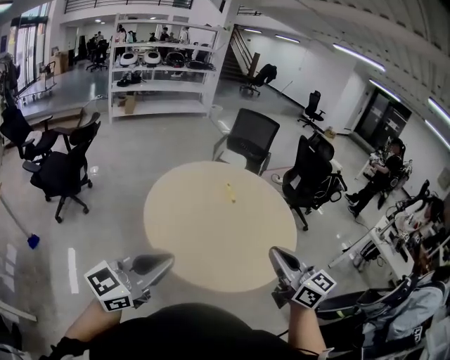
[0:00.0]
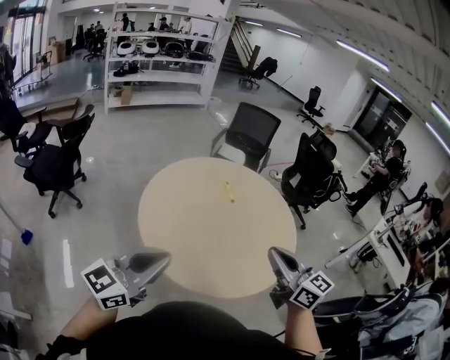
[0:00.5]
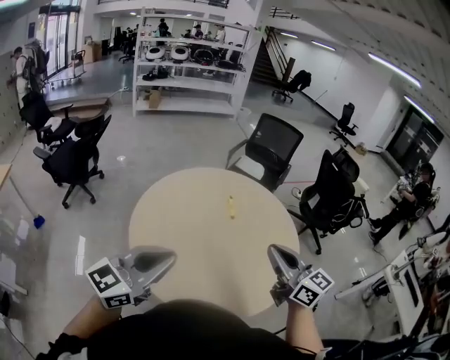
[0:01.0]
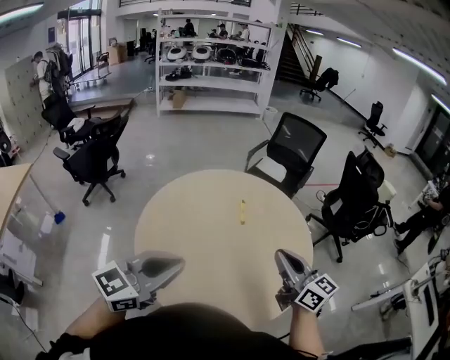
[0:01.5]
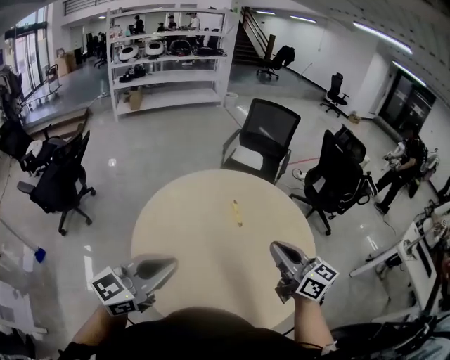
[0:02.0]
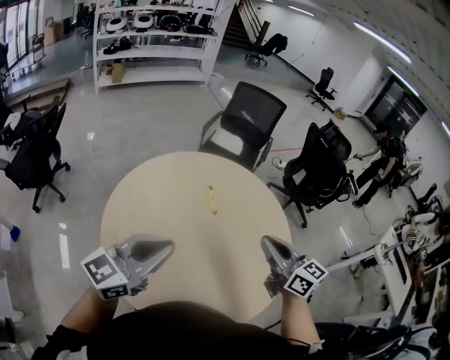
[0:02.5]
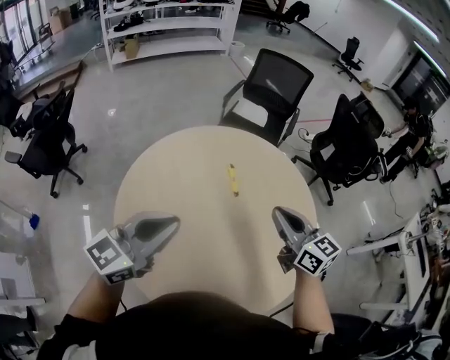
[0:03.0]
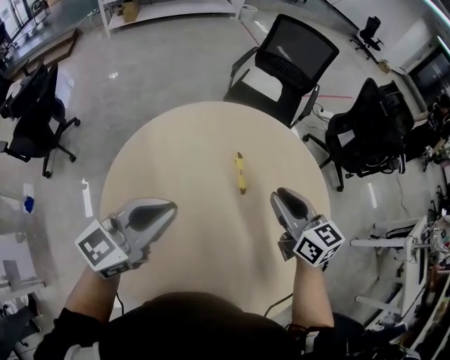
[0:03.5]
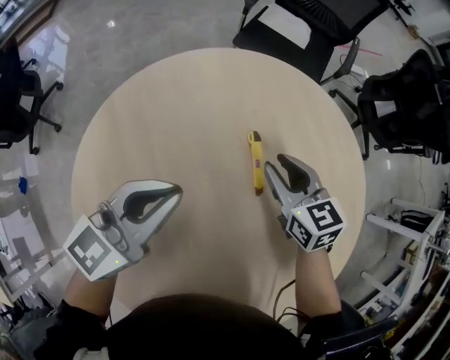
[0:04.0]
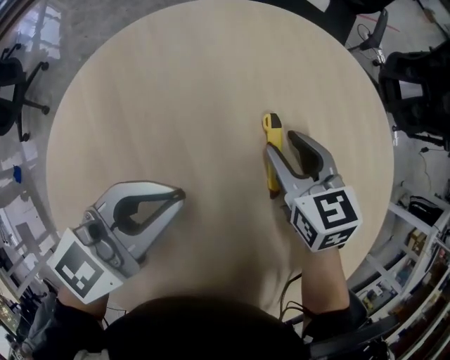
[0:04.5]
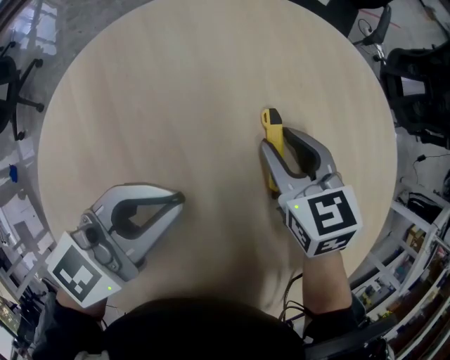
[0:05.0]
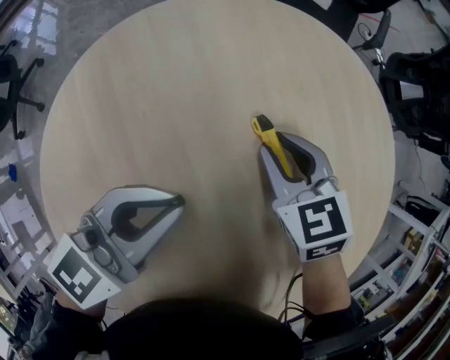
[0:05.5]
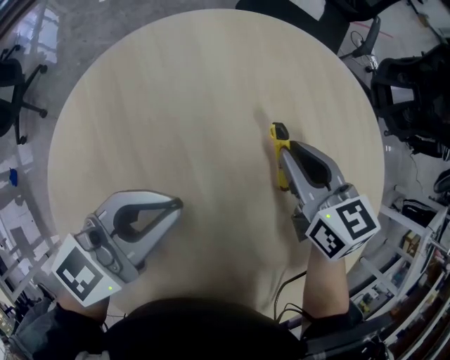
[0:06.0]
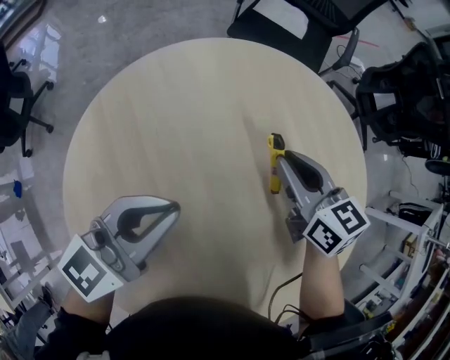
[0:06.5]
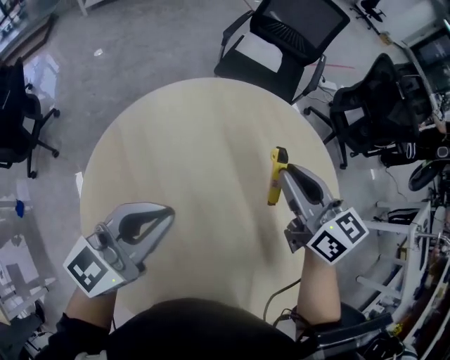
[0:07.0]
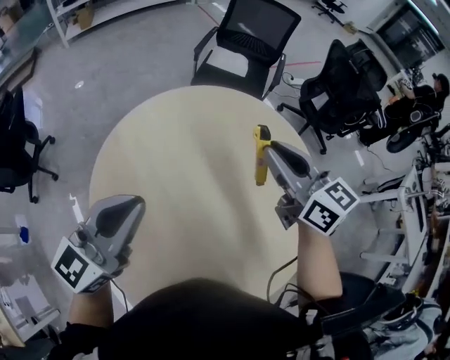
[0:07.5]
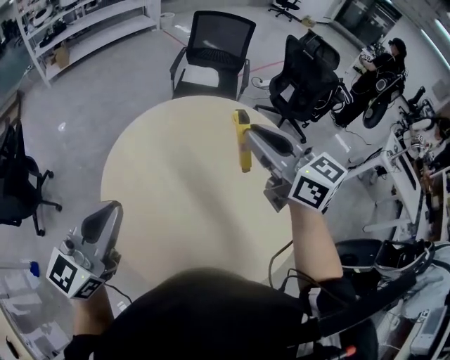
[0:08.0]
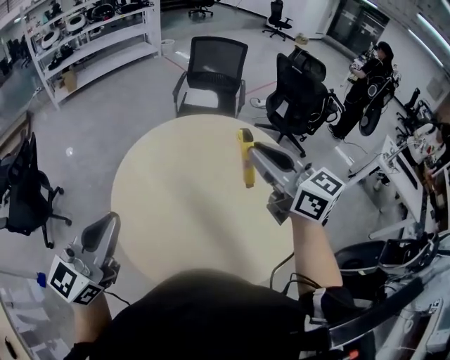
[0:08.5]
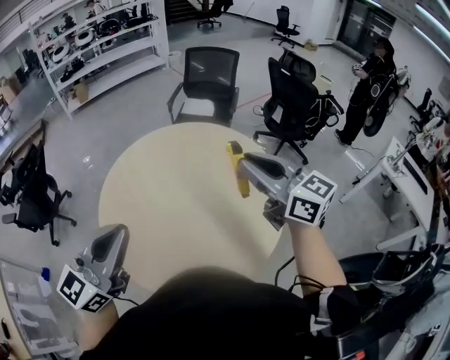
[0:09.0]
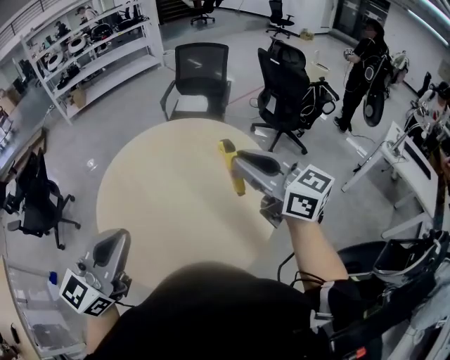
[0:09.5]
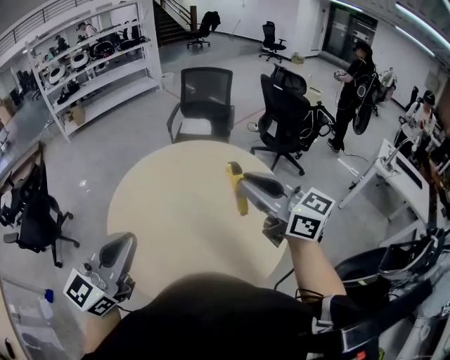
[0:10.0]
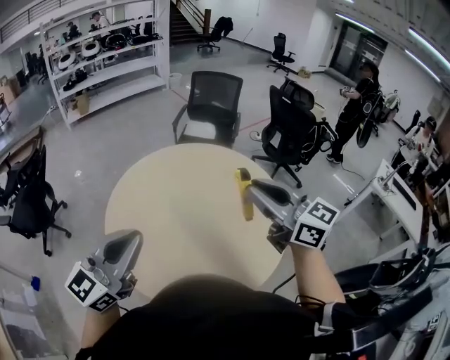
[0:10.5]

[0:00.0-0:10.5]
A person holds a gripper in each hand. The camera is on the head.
0:00.0 to 0:02.0: The grippers both shift forward by roughly 30 cm.
0:02.0 to 0:04.0: The two grippers go approximately 50 cm forward and downward. The right gripper tips its fingers downward by about 30 degrees, and opens its fingers.
0:04.0 to 0:06.5: The left gripper moves approximately 10 cm downward and comes back; the right gripper goes downward and returns, roughly 10 cm each way.
0:06.5 to 0:08.5: The two grippers go some 50 cm upward and backward. The right gripper changes its angle by about 30 degrees. The left gripper swivels about 20 degrees.
0:08.5 to 0:10.5: The left gripper is displaced to the right and backward by roughly 15 cm, while the right gripper goes some 15 cm backward and to the right.

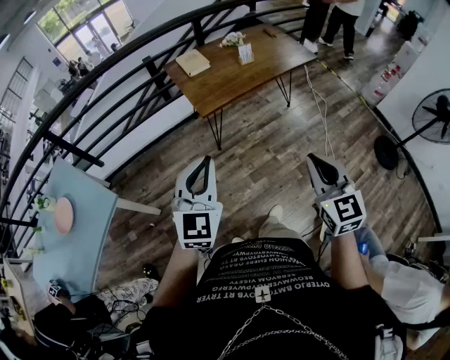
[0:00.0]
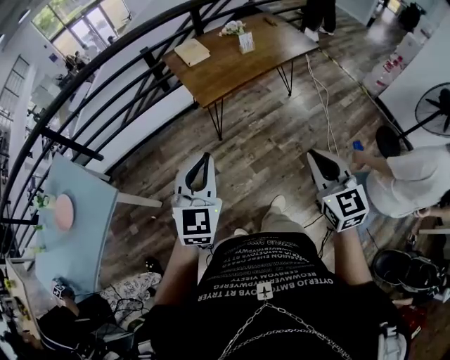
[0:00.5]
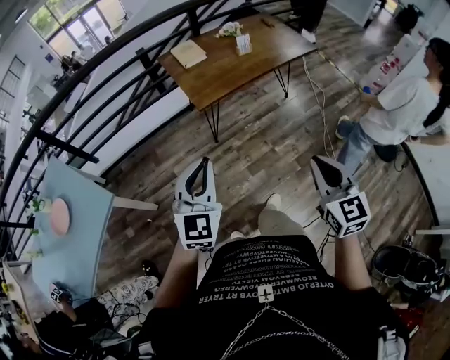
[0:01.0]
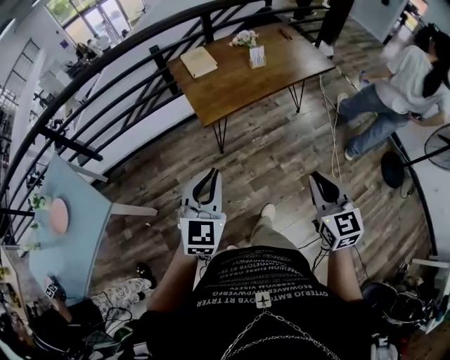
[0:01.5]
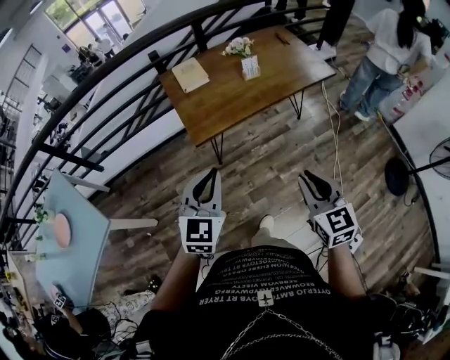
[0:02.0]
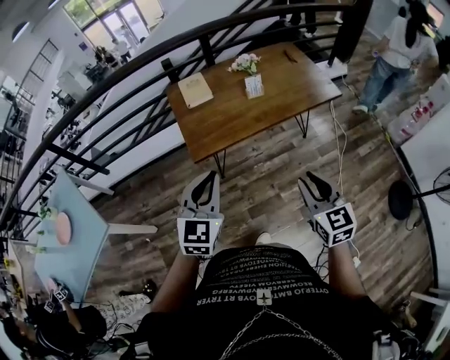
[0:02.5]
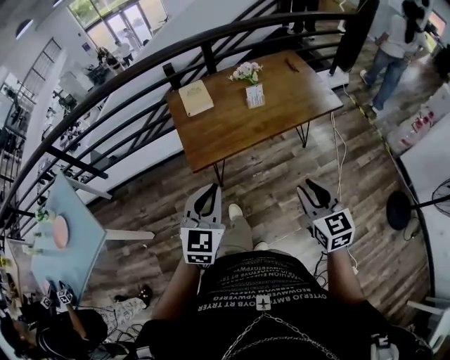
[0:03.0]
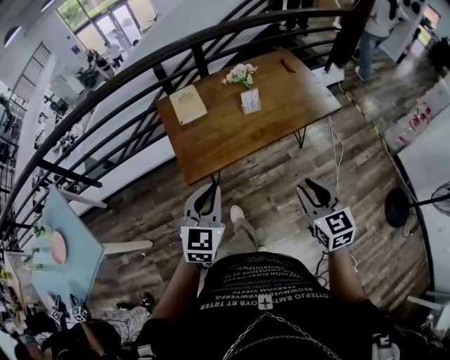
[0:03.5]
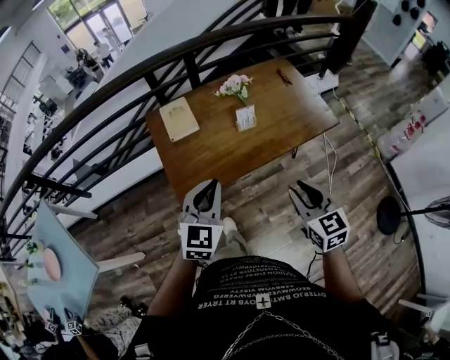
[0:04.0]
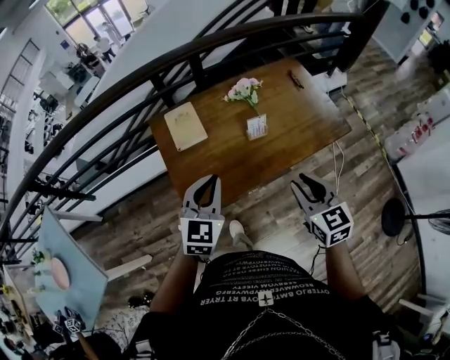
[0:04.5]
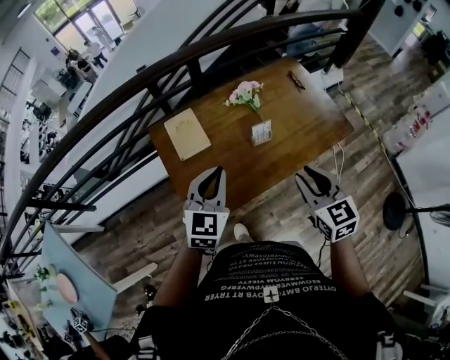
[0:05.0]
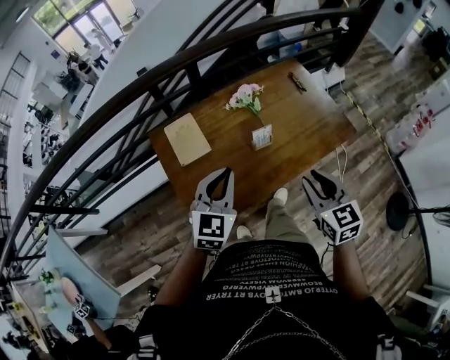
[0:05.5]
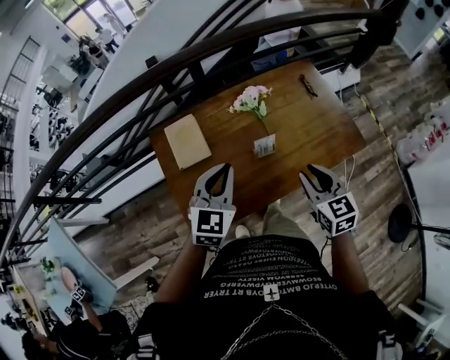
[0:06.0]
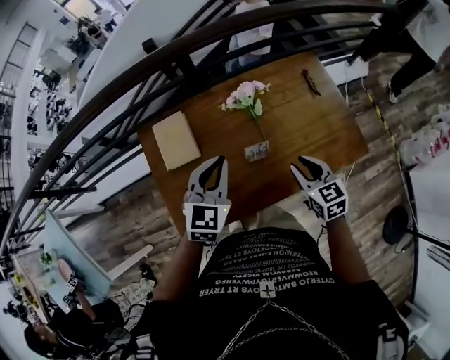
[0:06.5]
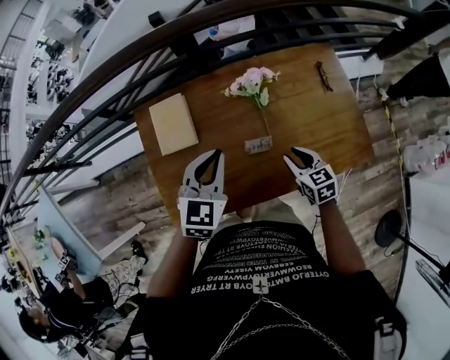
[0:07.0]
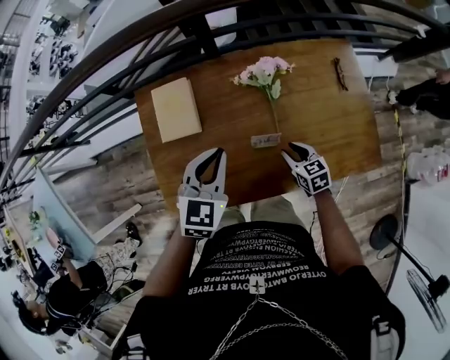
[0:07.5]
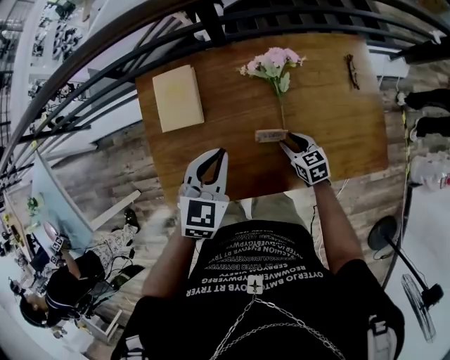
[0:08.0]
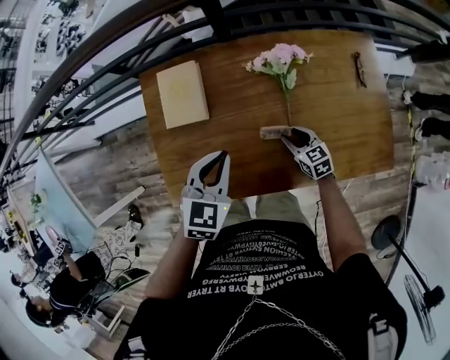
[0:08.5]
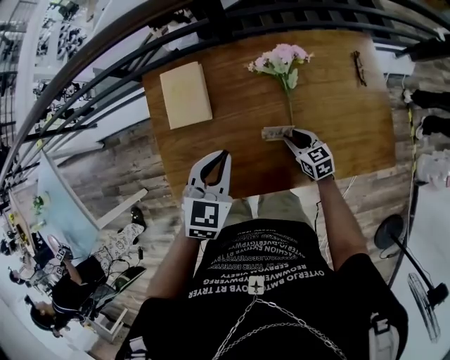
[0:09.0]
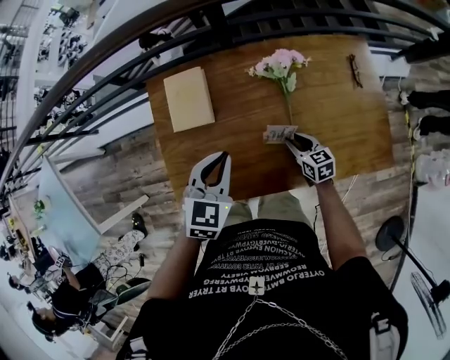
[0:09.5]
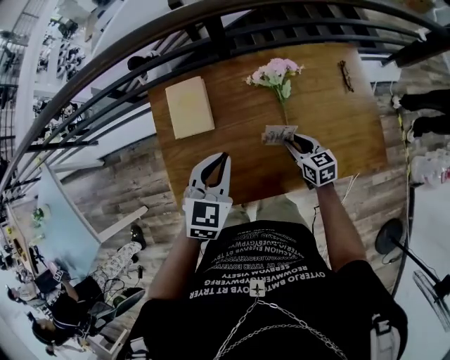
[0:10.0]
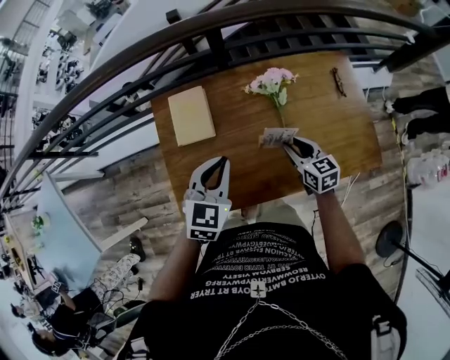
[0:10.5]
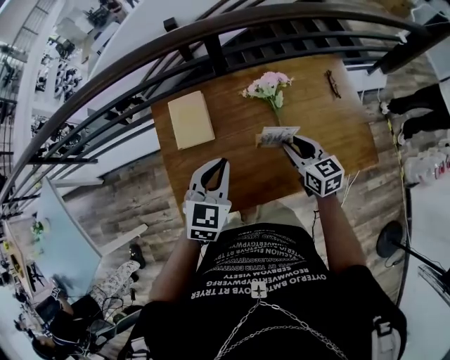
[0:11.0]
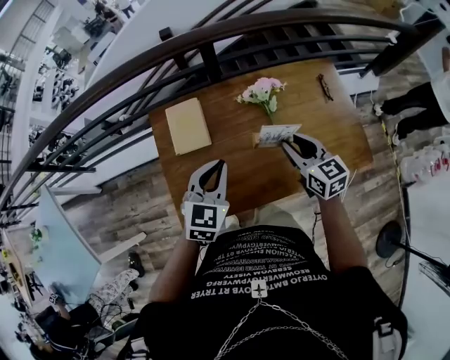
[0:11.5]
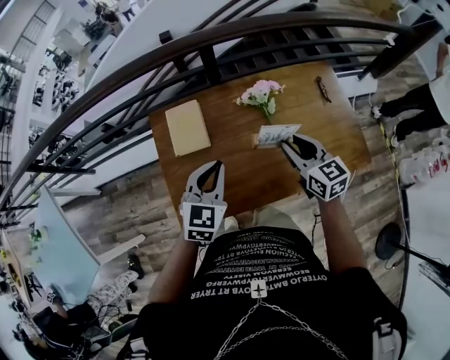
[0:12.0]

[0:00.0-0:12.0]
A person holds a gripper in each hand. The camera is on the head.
0:00.0 to 0:02.0: The right gripper moves forward, about 20 cm, while the left gripper heads forward and to the right, covering roughly 25 cm.
0:02.0 to 0:04.0: Both grippers move forward, some 25 cm.
0:04.0 to 0:06.0: The grippers both shift forward by approximately 25 cm.
0:06.0 to 0:08.0: The left gripper goes some 15 cm downward and forward, and turns by about 20 degrees, while the right gripper heads downward and forward, covering roughly 35 cm, and rotates some 30 degrees.
0:08.0 to 0:10.0: The right gripper travels upward by some 5 cm.
0:10.0 to 0:12.0: The right gripper travels upward by some 20 cm.

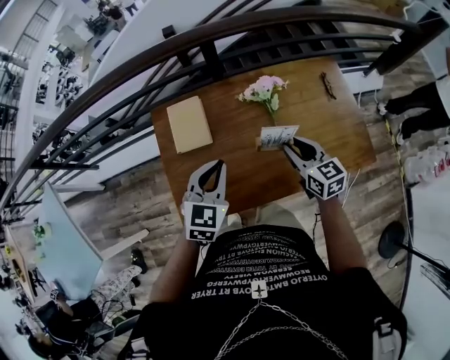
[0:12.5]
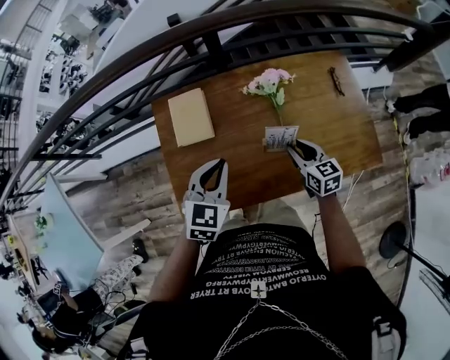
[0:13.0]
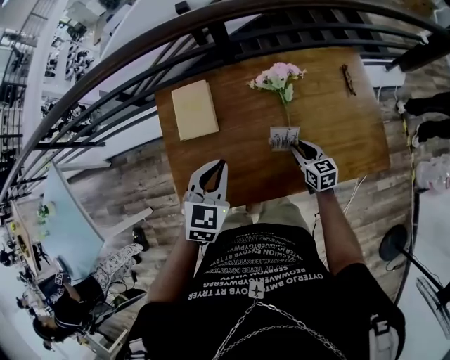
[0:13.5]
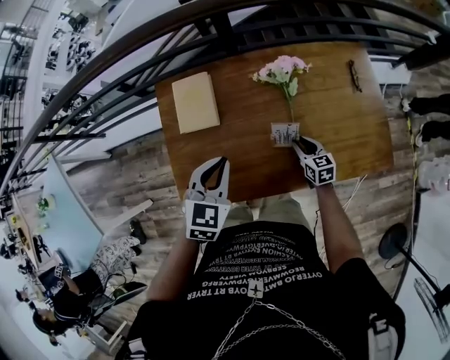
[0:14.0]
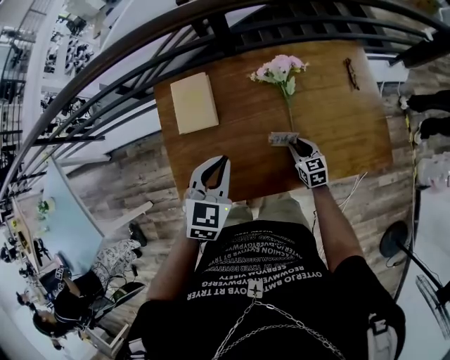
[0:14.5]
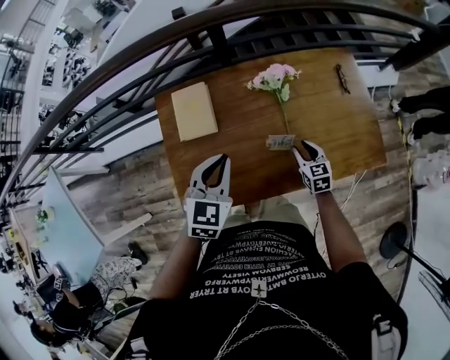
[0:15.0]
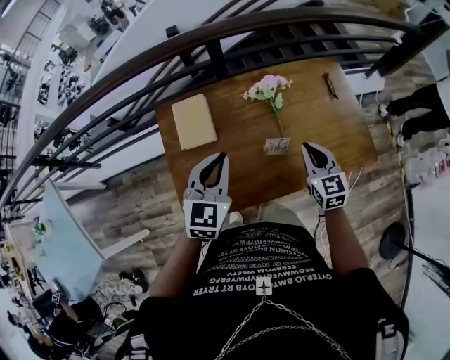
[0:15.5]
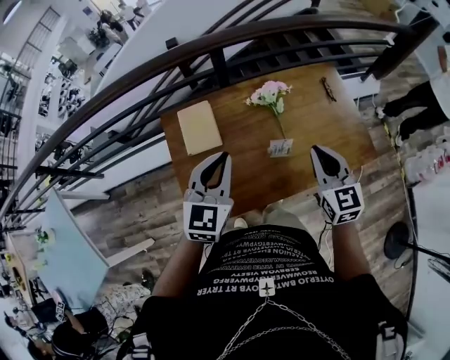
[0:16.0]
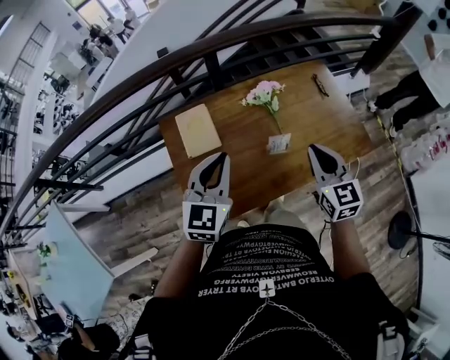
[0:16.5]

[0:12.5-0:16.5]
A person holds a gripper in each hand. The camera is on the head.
0:12.5 to 0:14.5: The right gripper moves downward, roughly 25 cm.
0:14.5 to 0:16.5: The left gripper heads upward, covering roughly 15 cm, and rotates roughly 20 degrees; the right gripper heads upward, covering roughly 35 cm, changes its angle by roughly 30 degrees, and closes its fingers.
